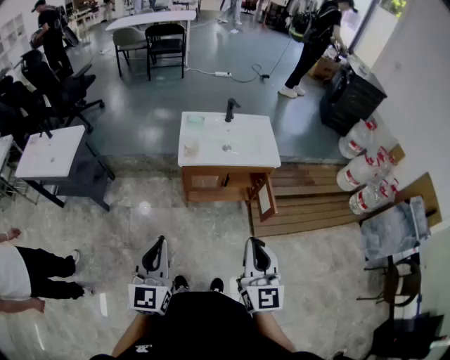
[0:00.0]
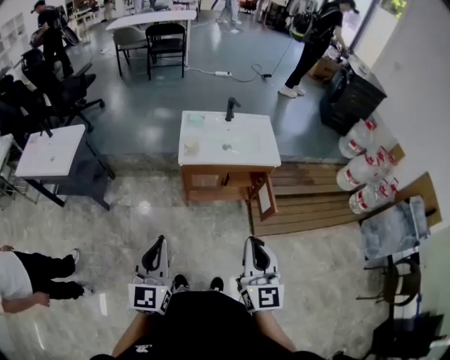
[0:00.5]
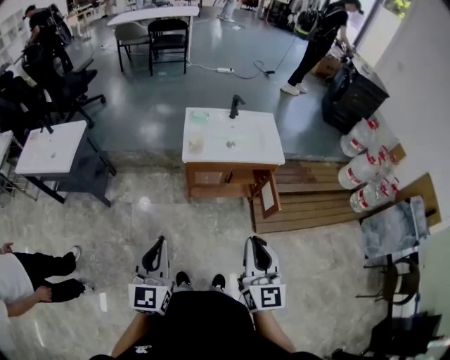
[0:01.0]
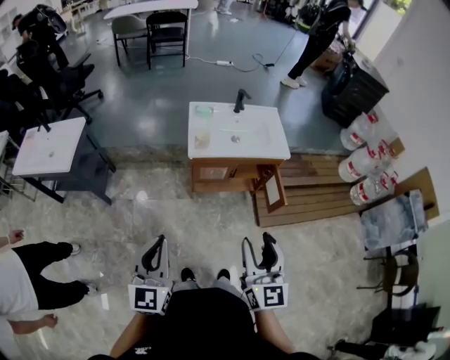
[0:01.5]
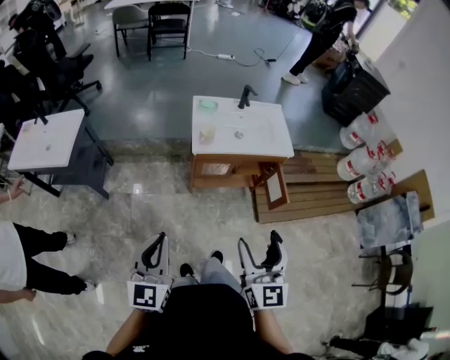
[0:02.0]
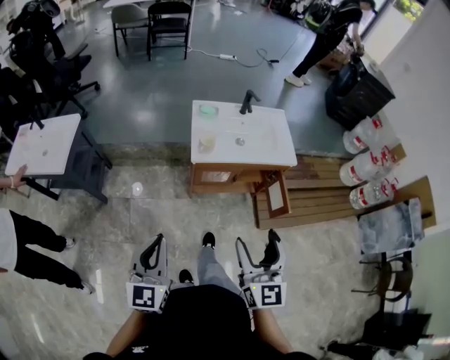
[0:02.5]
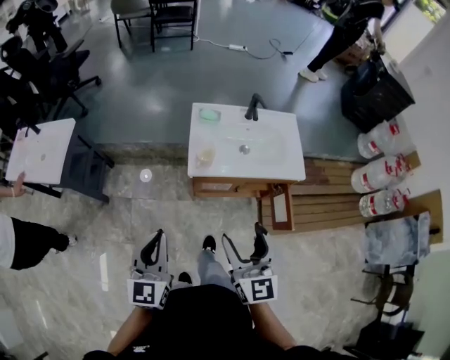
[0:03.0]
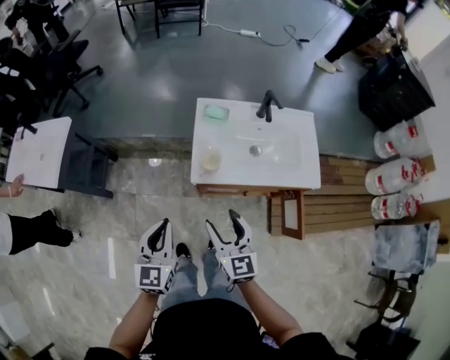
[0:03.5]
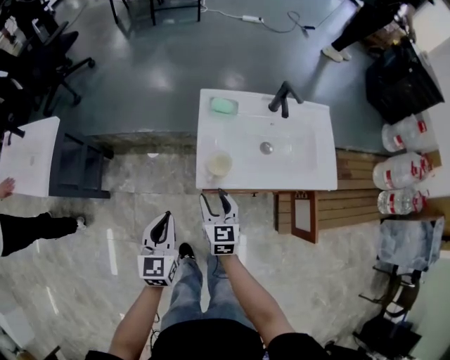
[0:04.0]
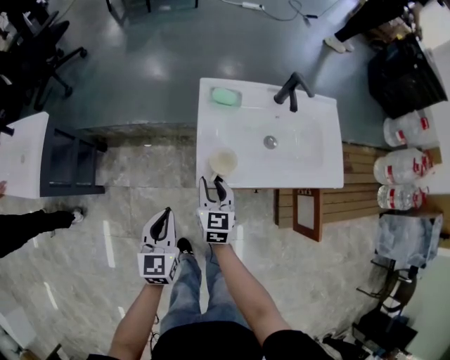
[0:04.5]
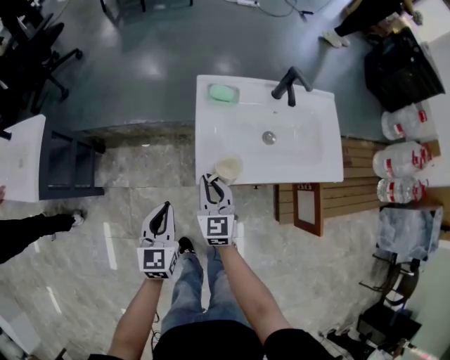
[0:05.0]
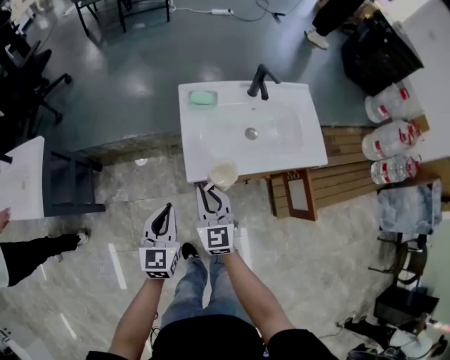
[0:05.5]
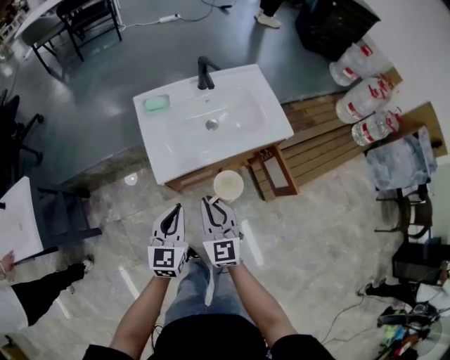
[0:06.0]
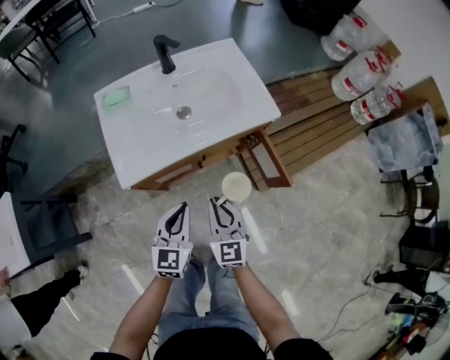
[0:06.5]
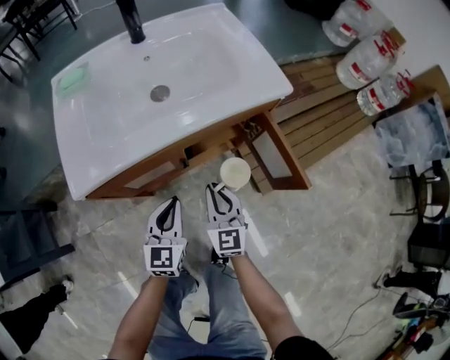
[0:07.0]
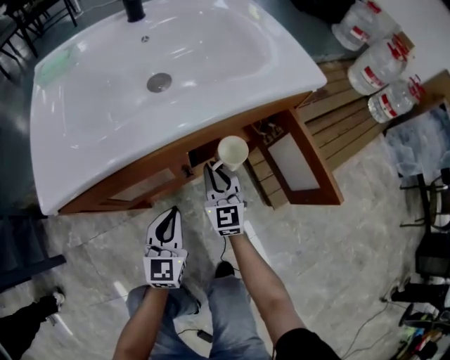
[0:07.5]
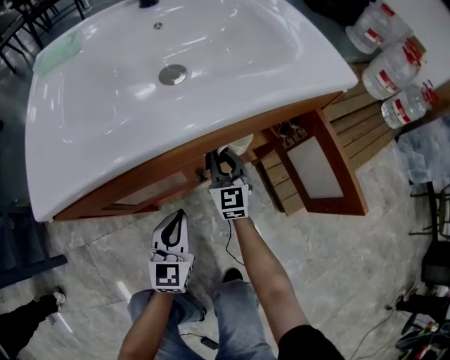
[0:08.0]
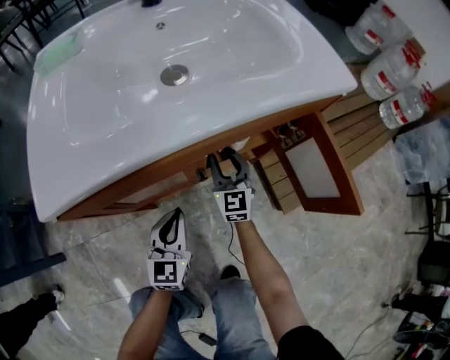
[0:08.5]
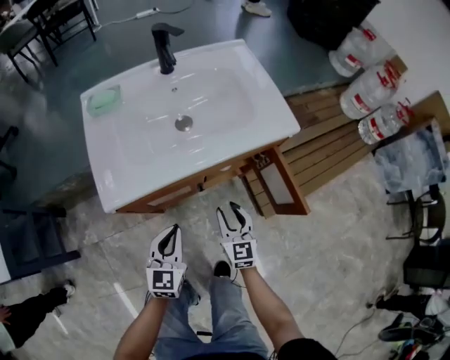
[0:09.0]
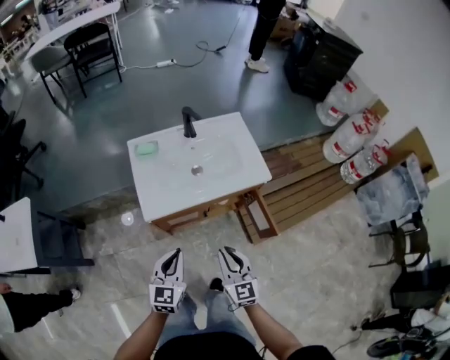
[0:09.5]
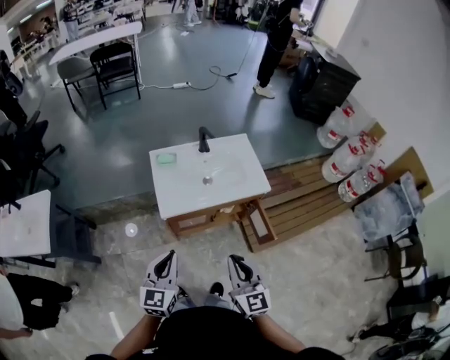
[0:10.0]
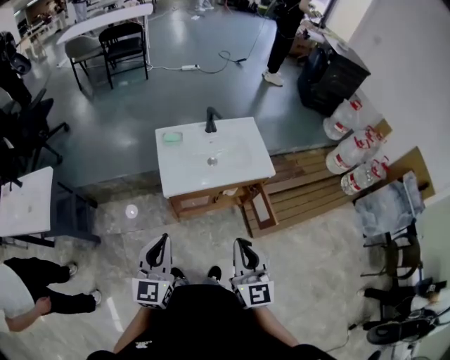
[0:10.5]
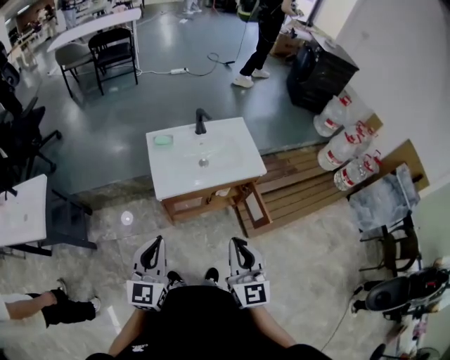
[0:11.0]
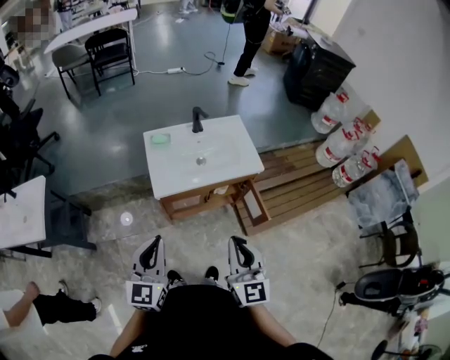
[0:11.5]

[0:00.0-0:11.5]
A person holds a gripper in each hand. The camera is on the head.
0:00.0 to 0:02.0: Both grippers move to the left, roughly 10 cm. The right gripper opens up.
0:02.0 to 0:04.0: Both grippers travel together forward and downward, roughly 50 cm. The right gripper swivels roughly 30 degrees.
0:04.0 to 0:06.0: The left gripper travels to the right by some 15 cm, and changes its angle by roughly 30 degrees; the right gripper goes some 15 cm to the right, backward and upward, changes its angle by roughly 20 degrees, and closes its fingers.
0:06.0 to 0:07.5: The left gripper travels downward by some 35 cm. Meanwhile the right gripper travels downward and forward by roughly 40 cm.
0:07.5 to 0:09.5: The left gripper goes roughly 35 cm upward. Meanwhile the right gripper moves upward and backward, some 40 cm.
0:09.5 to 0:11.5: Both grippers move upward and backward, approximately 25 cm.

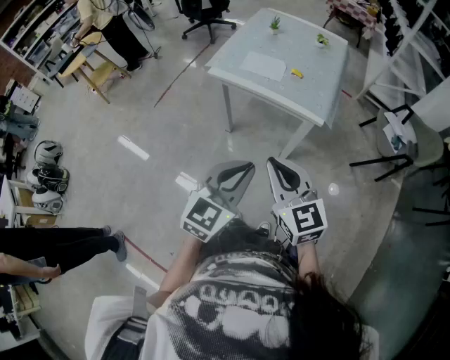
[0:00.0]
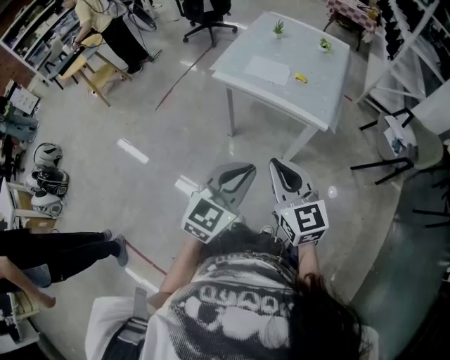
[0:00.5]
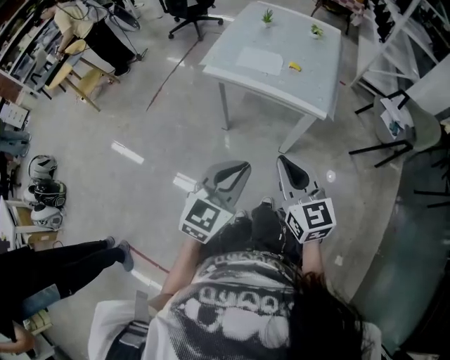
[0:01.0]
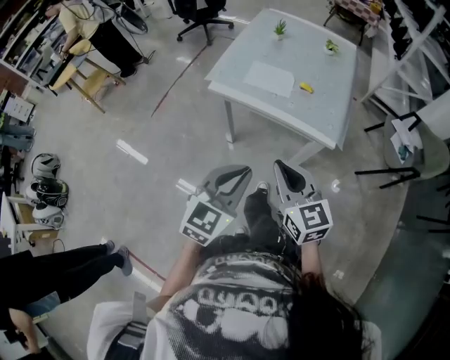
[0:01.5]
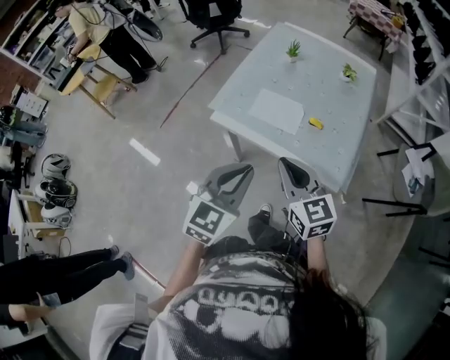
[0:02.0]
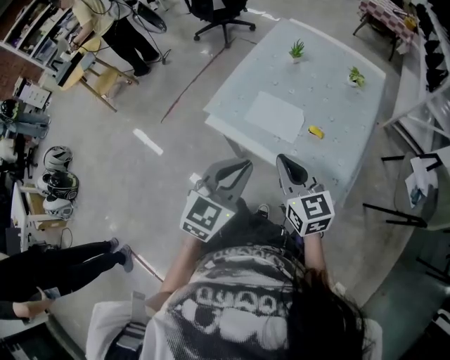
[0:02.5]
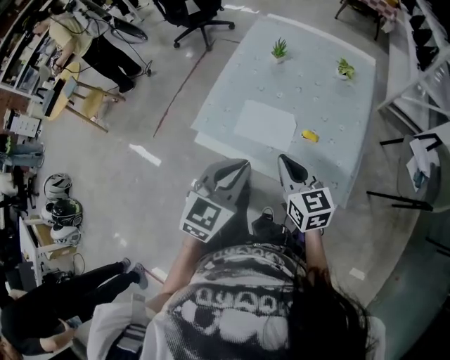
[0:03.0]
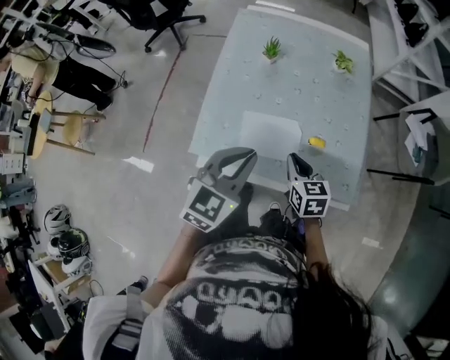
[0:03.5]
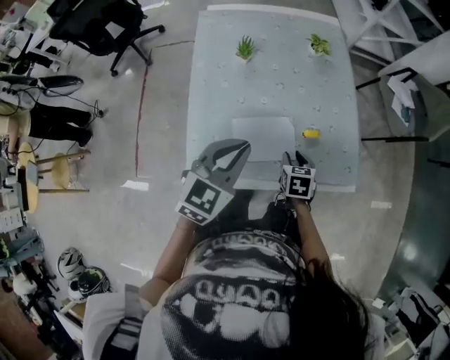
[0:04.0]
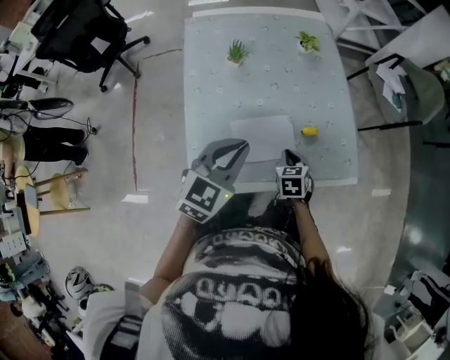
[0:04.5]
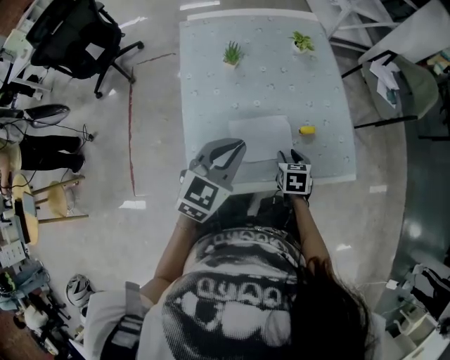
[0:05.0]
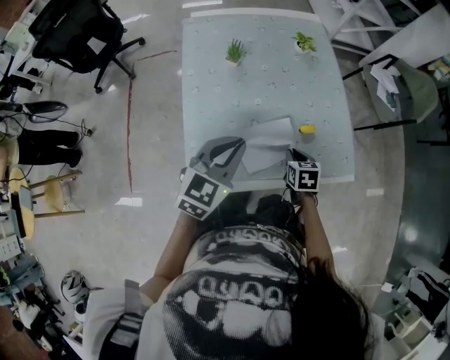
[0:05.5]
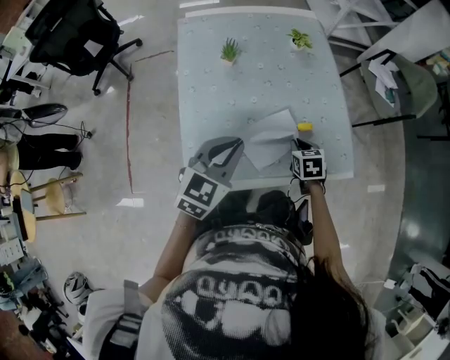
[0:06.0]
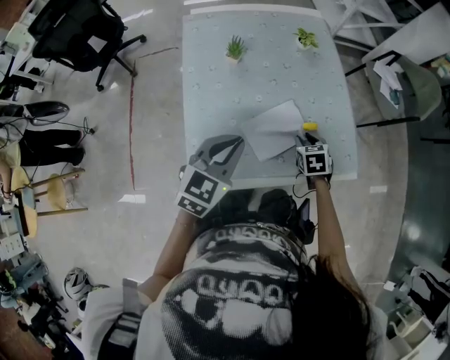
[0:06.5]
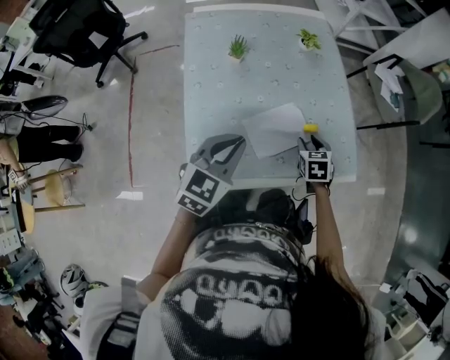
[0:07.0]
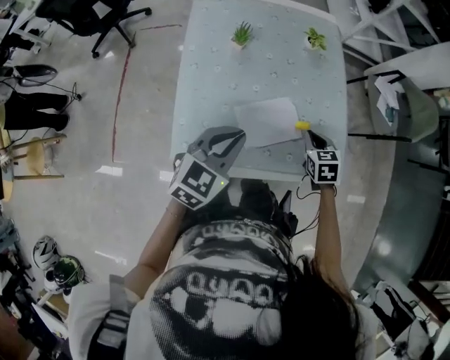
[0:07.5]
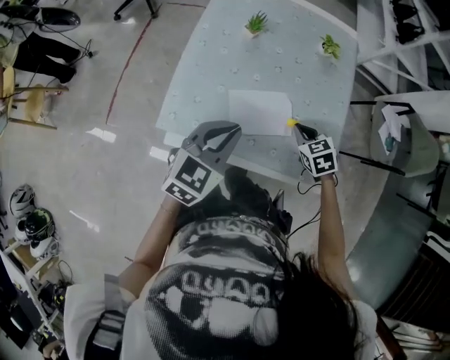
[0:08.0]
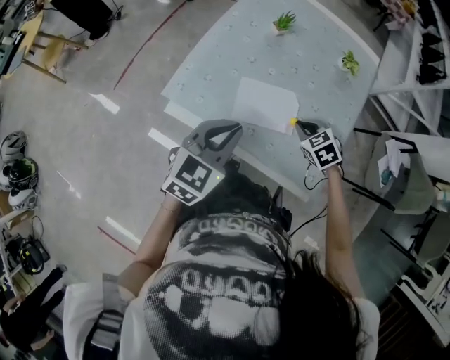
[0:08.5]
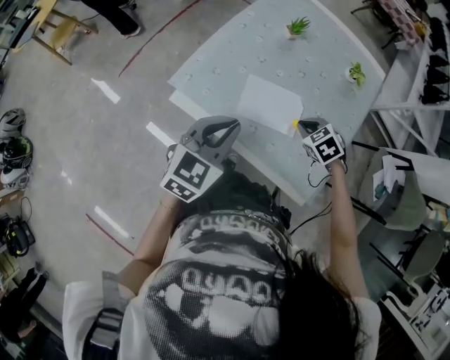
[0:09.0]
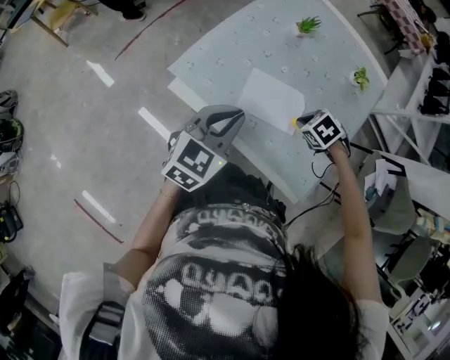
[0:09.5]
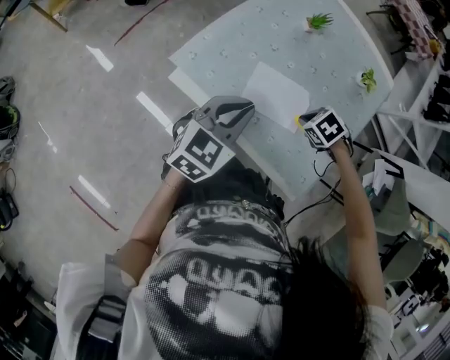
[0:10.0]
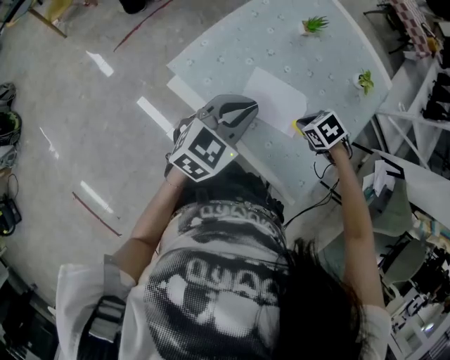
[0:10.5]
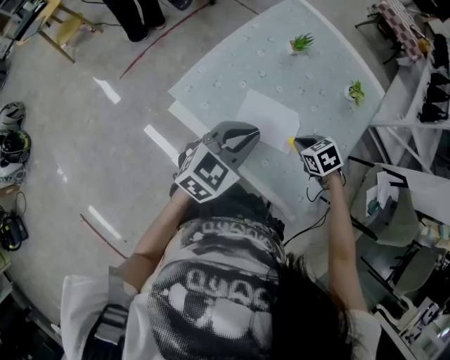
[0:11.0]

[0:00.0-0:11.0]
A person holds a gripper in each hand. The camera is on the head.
0:00.0 to 0:02.0: The grippers both shift forward by roughly 30 cm.
0:02.0 to 0:03.5: The right gripper is displaced forward and downward by about 25 cm, and turns by roughly 40 degrees; the left gripper is displaced forward by roughly 25 cm, and swivels some 20 degrees.
0:03.5 to 0:05.5: The left gripper ends up some 10 cm from where it was, while the right gripper shifts approximately 10 cm downward, swivels roughly 30 degrees, and opens, then closes again.
0:05.5 to 0:07.5: The right gripper travels forward and upward by about 10 cm, changes its angle by some 20 degrees, and opens, then closes again.
0:07.5 to 0:09.0: The left gripper changes place by about 10 cm, and changes its angle by approximately 40 degrees, while the right gripper rolls counterclockwise, seen from behind, by roughly 50 degrees.
0:09.0 to 0:11.0: The left gripper changes place by roughly 5 cm.

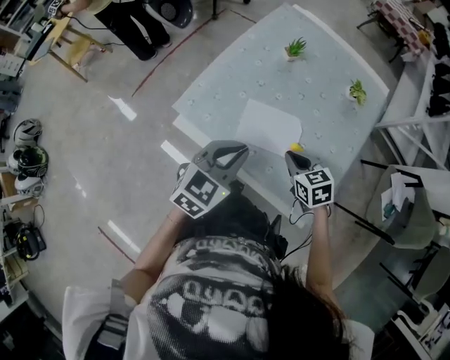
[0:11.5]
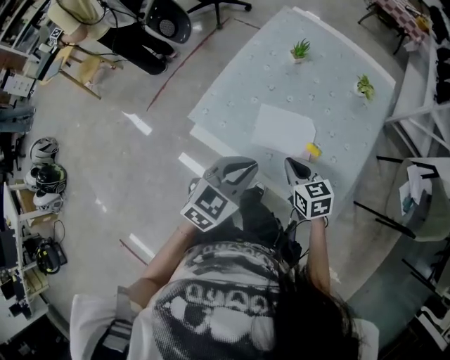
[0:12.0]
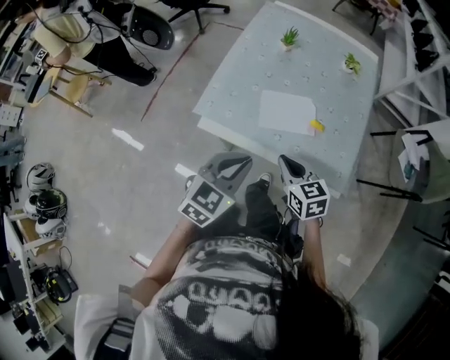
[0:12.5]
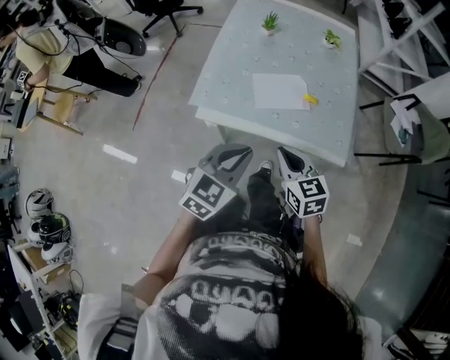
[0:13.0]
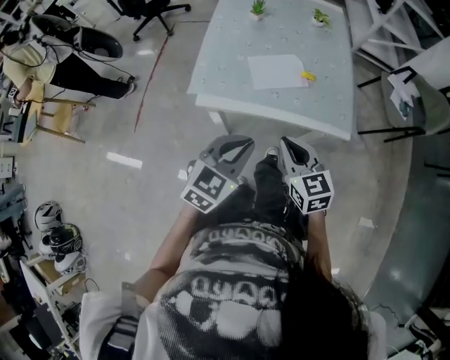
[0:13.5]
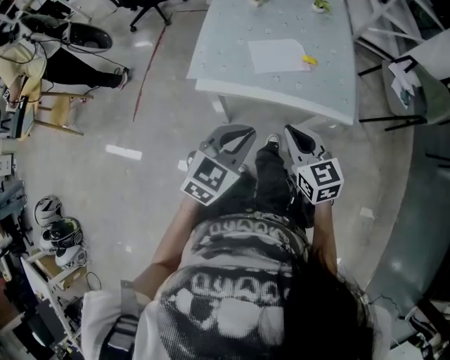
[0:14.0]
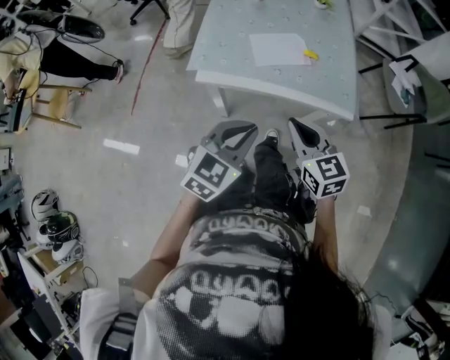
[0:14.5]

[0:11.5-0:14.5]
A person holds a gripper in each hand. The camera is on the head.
0:11.5 to 0:13.0: The right gripper is displaced backward, to the left and upward by some 25 cm, and swivels roughly 30 degrees. Meanwhile the left gripper travels backward and to the left by approximately 15 cm.
0:13.0 to 0:14.5: The two grippers go roughly 5 cm backward.

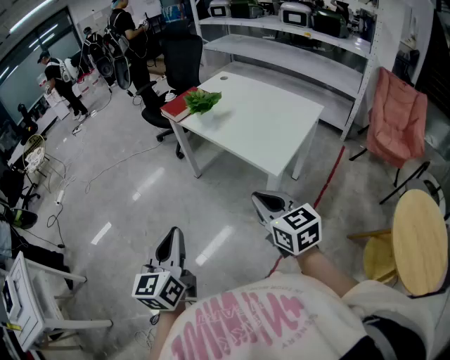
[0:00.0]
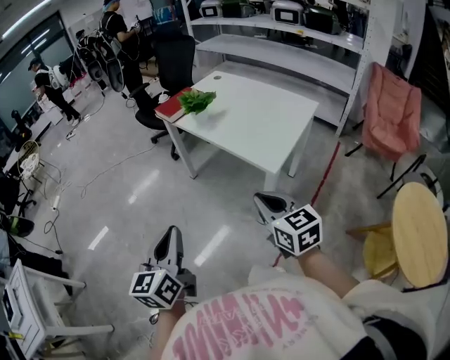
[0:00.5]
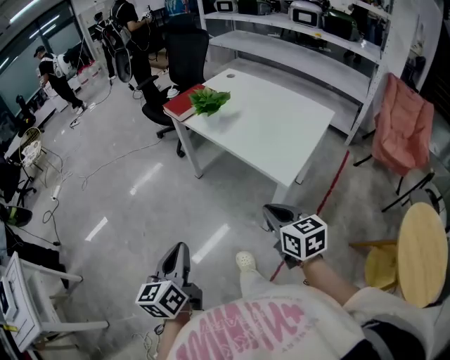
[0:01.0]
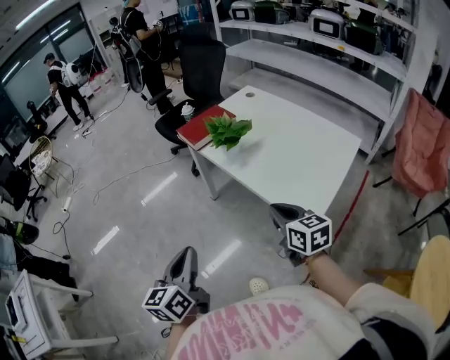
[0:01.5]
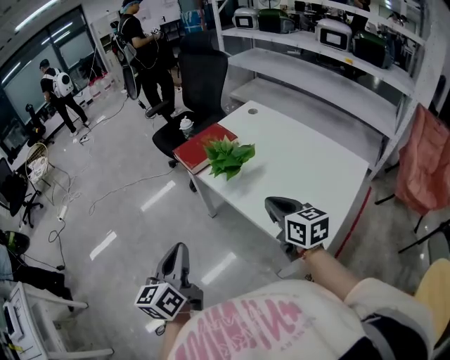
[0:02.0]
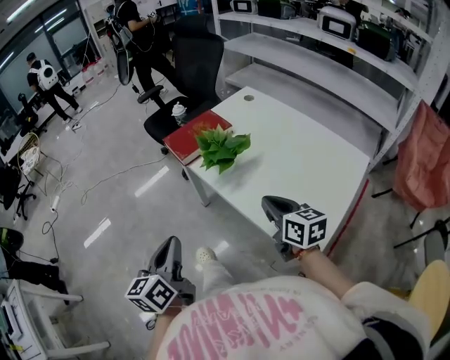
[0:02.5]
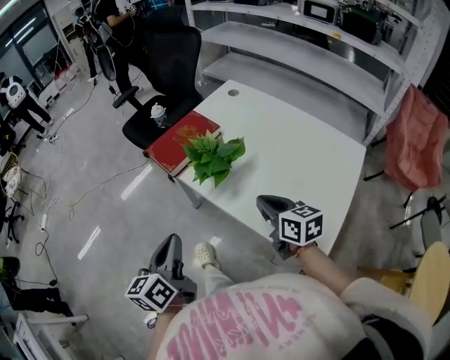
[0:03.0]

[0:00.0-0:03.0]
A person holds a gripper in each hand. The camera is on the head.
0:00.0 to 0:01.5: The two grippers go approximately 20 cm forward.
0:01.5 to 0:03.0: The grippers both shift forward by approximately 20 cm.
